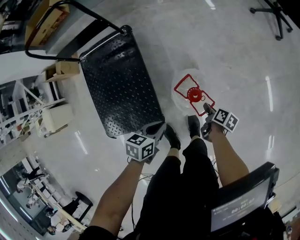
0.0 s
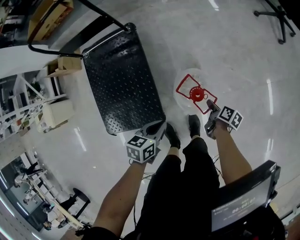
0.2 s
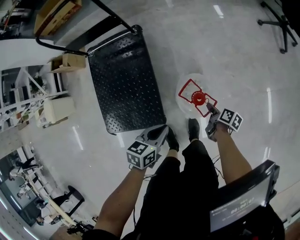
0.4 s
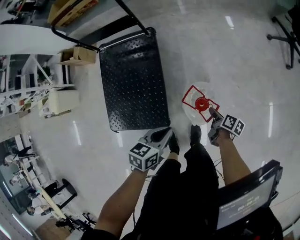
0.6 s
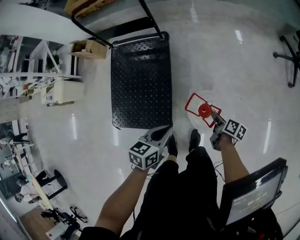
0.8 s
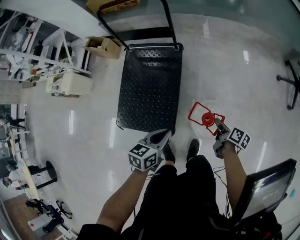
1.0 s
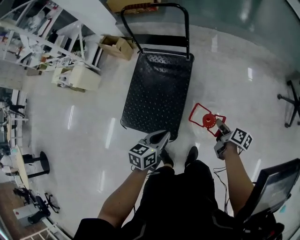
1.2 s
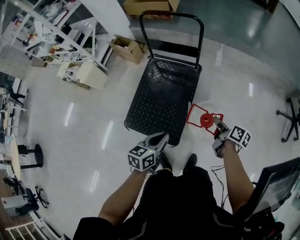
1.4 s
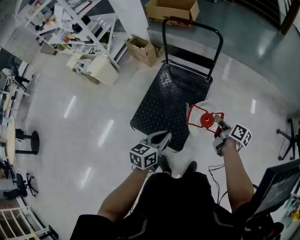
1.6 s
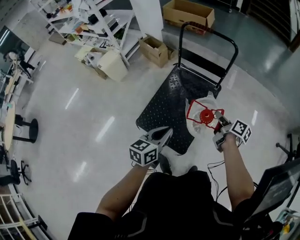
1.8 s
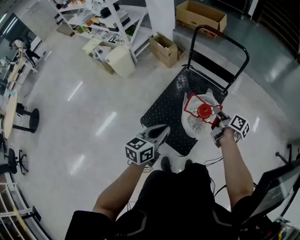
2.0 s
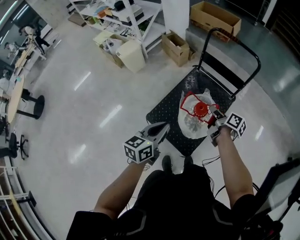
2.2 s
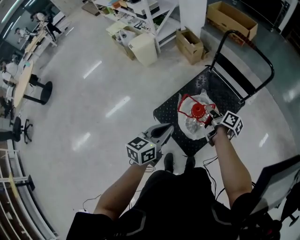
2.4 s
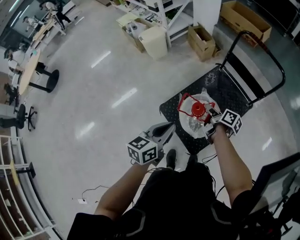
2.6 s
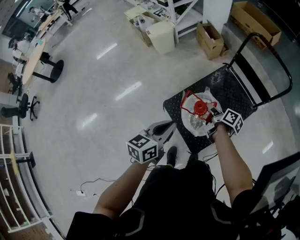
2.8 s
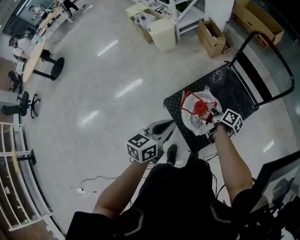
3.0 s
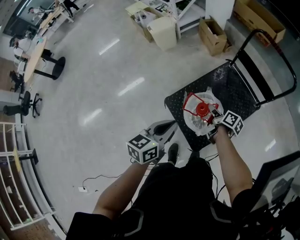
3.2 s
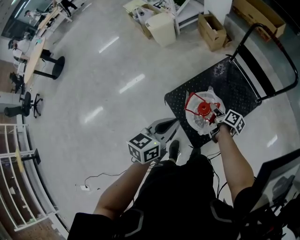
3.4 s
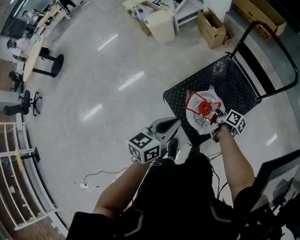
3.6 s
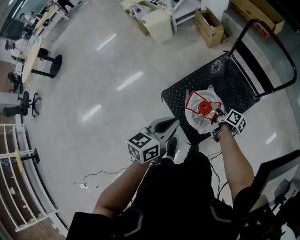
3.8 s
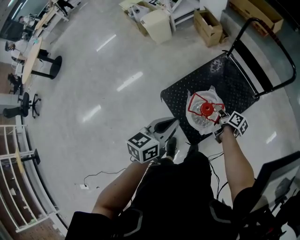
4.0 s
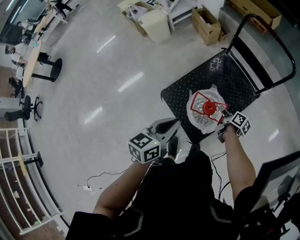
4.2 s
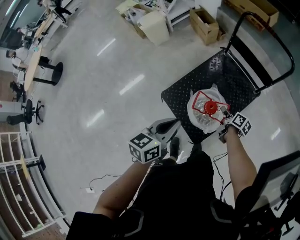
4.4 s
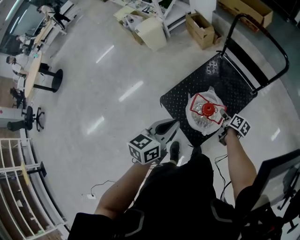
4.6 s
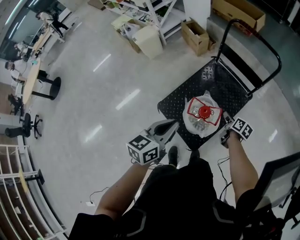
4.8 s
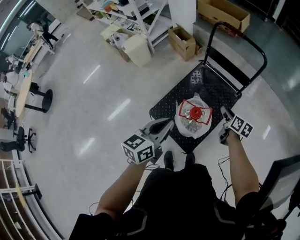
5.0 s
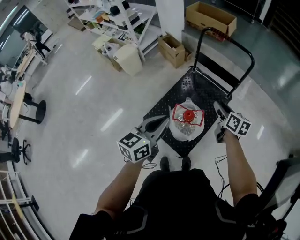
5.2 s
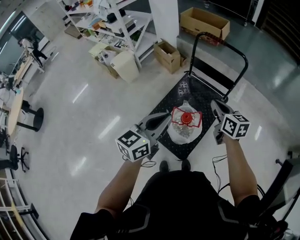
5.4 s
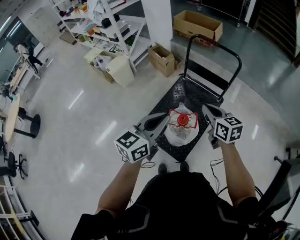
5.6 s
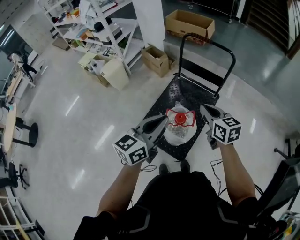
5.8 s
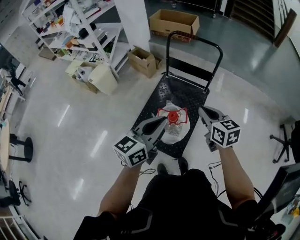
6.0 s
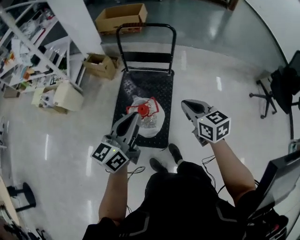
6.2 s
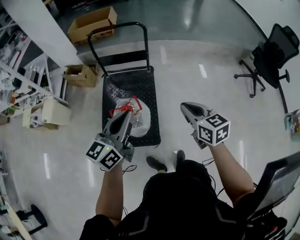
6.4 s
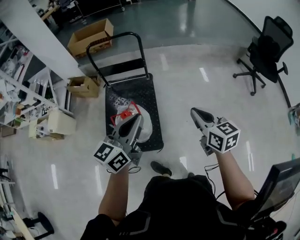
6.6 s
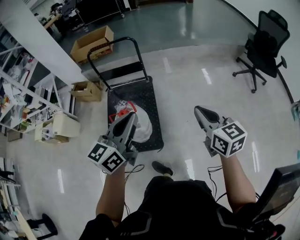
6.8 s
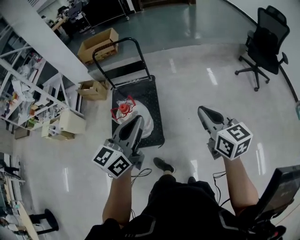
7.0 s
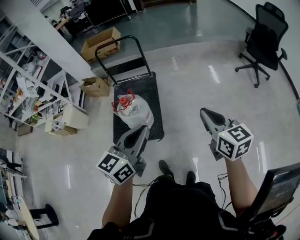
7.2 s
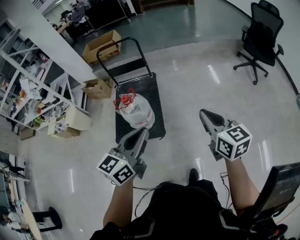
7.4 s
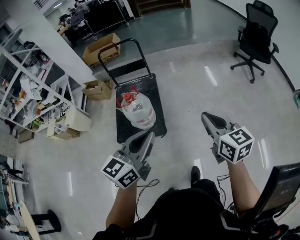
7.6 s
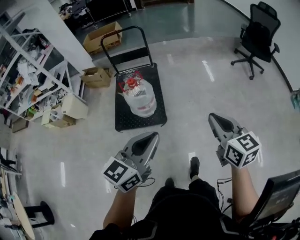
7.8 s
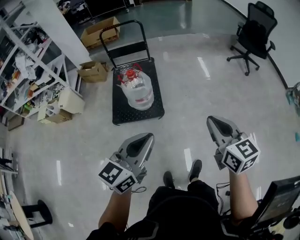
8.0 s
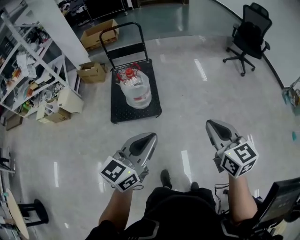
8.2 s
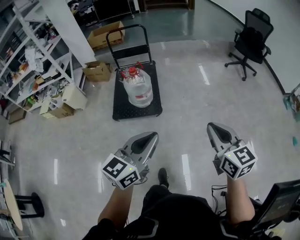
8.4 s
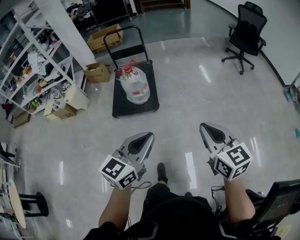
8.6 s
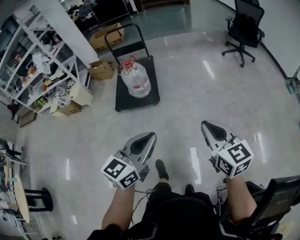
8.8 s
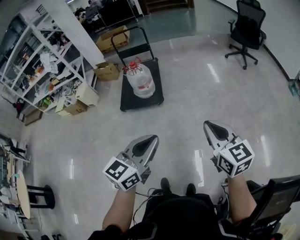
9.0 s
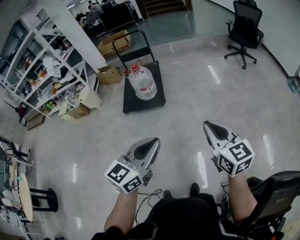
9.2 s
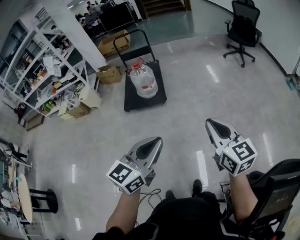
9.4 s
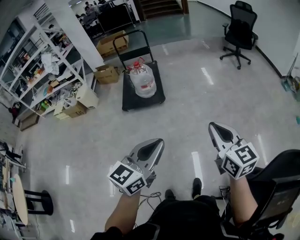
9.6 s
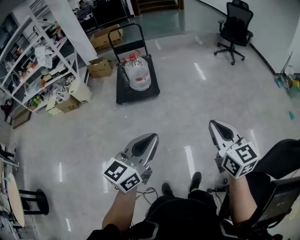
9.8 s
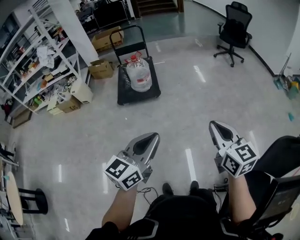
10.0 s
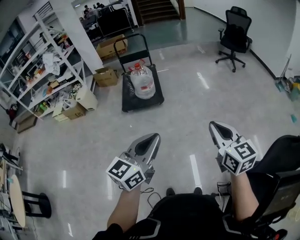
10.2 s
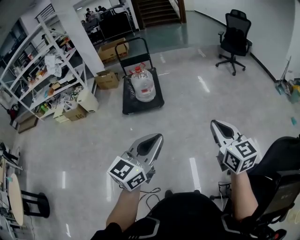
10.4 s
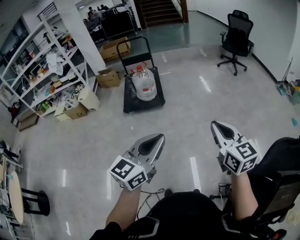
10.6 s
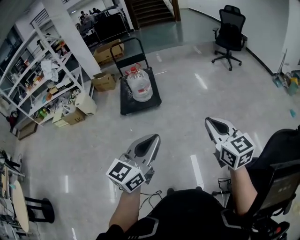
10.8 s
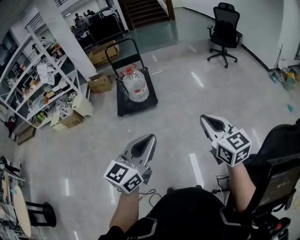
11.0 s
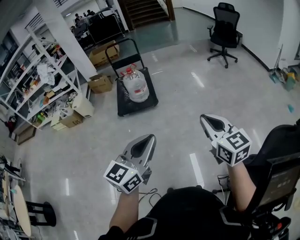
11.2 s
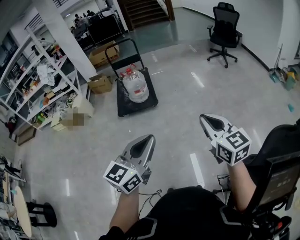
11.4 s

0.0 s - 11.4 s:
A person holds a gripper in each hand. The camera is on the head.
0.0 s - 1.4 s: Both grippers move upward, some 25 cm. The left gripper turns by some 40 degrees. Meanwhile the right gripper swivels roughly 40 degrees.
1.4 s - 2.8 s: The left gripper moves approximately 30 cm, and swivels approximately 30 degrees; the right gripper moves about 5 cm upward and comes back, and rotates approximately 30 degrees.
2.8 s - 4.2 s: The left gripper shifts roughly 5 cm to the right; the right gripper shifts roughly 15 cm to the right and downward.
4.2 s - 5.6 s: The right gripper travels upward by roughly 30 cm, twists approximately 50 degrees counterclockwise, seen from behind, and opens, then closes again, while the left gripper is displaced upward by about 15 cm, and changes its angle by approximately 30 degrees.
5.6 s - 7.2 s: The left gripper ends up roughly 40 cm from where it was, and turns by some 30 degrees, while the right gripper shifts by roughly 60 cm, and rotates approximately 40 degrees.
7.2 s - 8.6 s: Both grippers are carried backward, some 50 cm.
8.6 s - 10.0 s: Both grippers travel together backward, approximately 30 cm.
10.0 s - 11.4 s: The left gripper ends up some 5 cm from where it was.

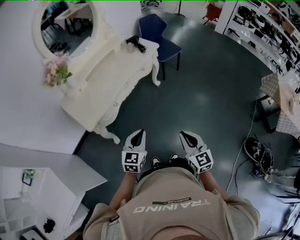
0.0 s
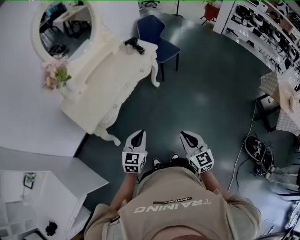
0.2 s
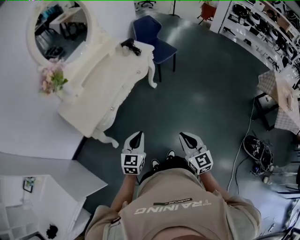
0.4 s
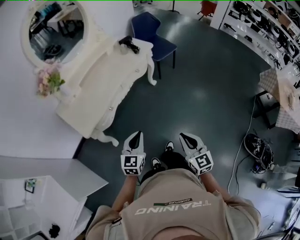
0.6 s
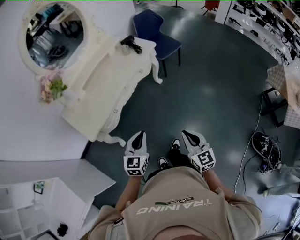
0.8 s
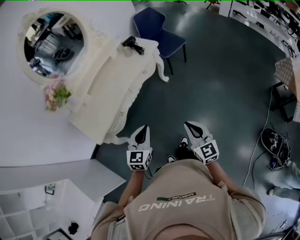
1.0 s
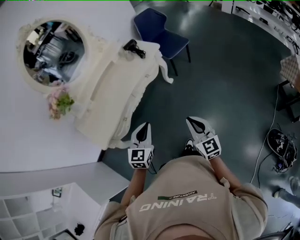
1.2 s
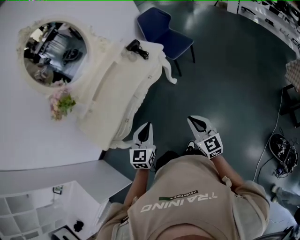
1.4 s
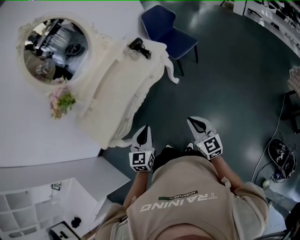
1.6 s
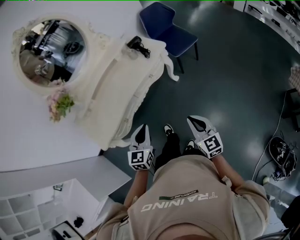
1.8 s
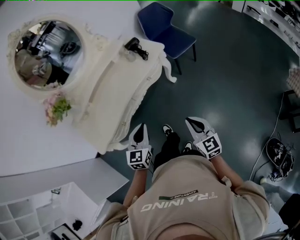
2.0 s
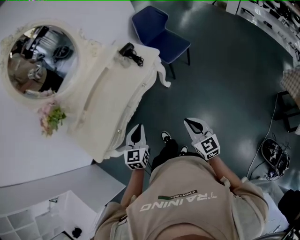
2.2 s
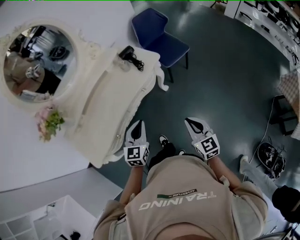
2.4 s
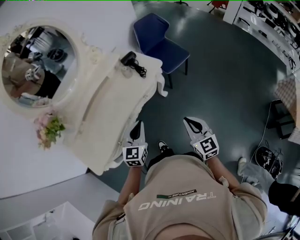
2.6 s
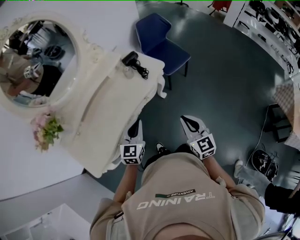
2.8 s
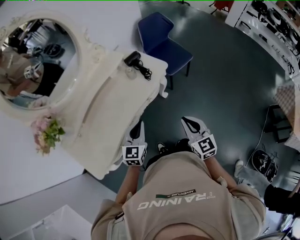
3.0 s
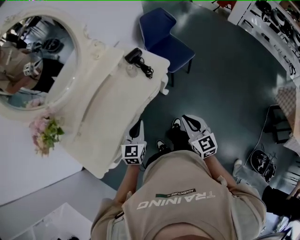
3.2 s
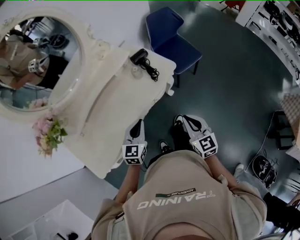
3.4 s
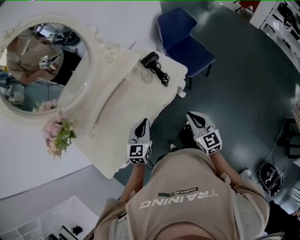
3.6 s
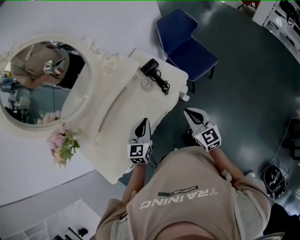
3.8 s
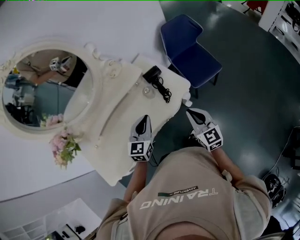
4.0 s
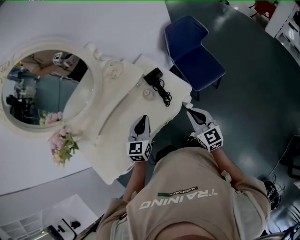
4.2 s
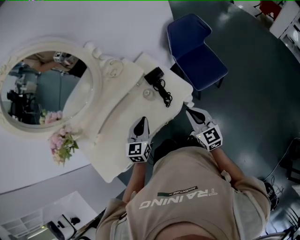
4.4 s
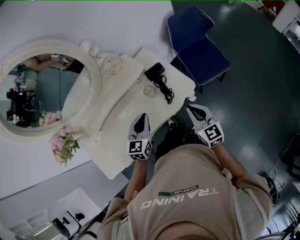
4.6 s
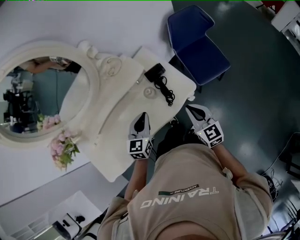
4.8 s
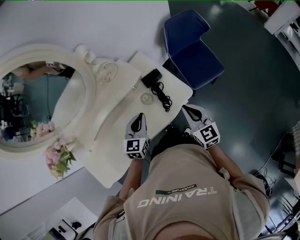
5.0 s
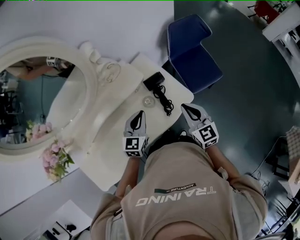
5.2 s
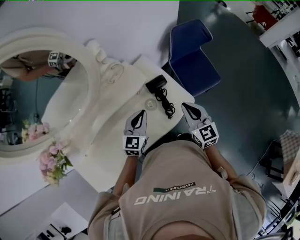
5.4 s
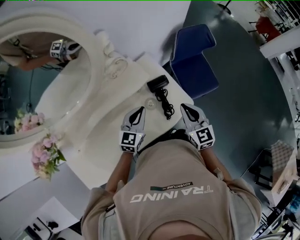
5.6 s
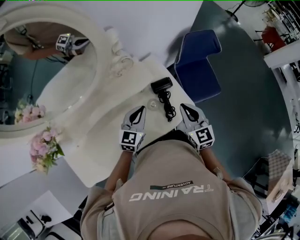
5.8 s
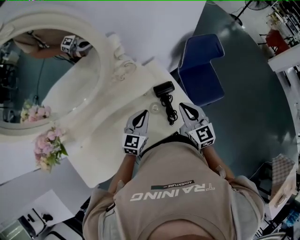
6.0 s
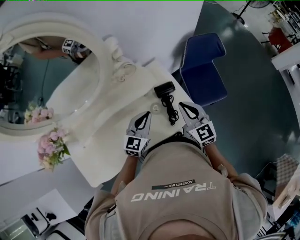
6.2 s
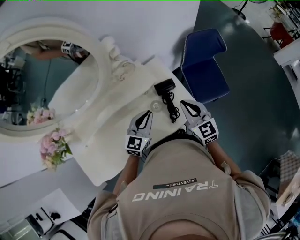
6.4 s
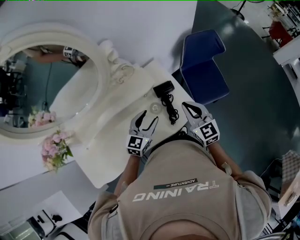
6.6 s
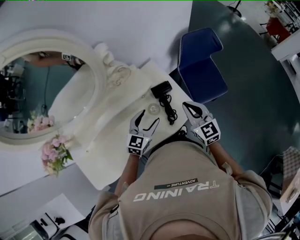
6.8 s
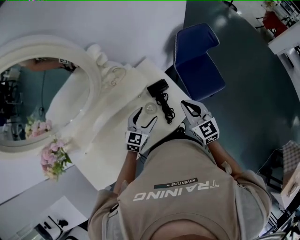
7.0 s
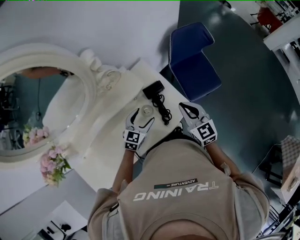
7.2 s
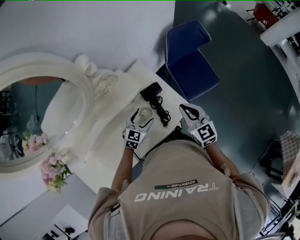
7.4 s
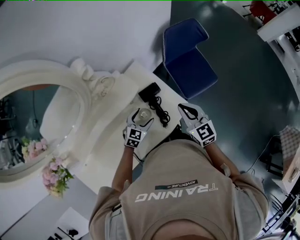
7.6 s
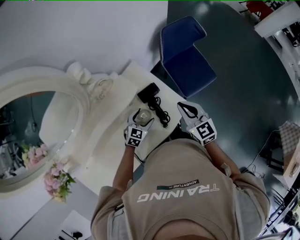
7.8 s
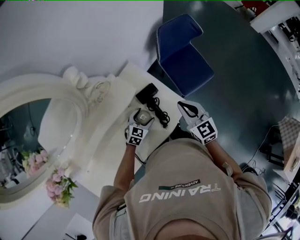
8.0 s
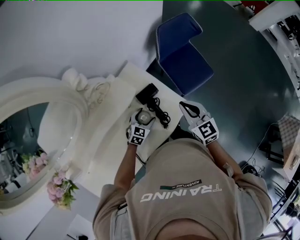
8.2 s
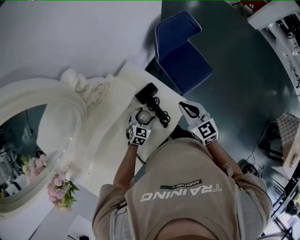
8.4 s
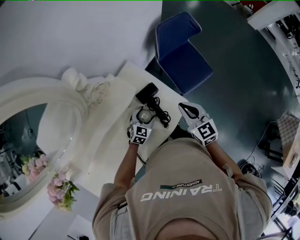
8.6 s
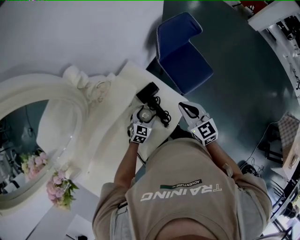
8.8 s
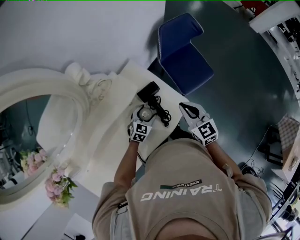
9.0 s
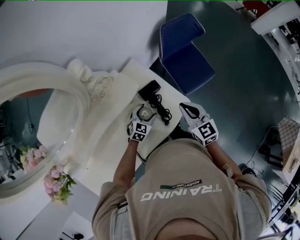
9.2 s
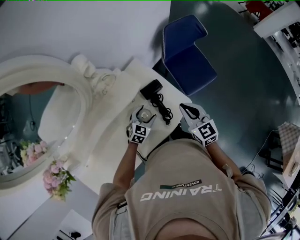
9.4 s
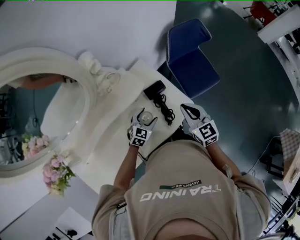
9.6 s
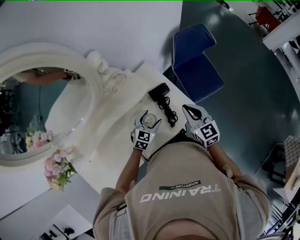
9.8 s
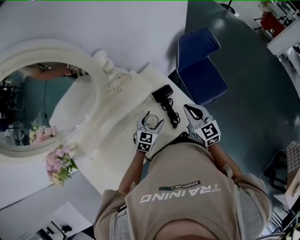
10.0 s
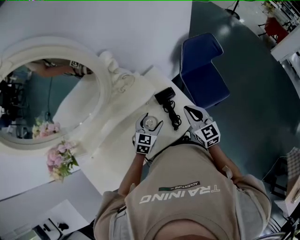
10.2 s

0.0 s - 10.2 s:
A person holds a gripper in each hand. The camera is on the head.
0.0 s - 1.4 s: Both grippers move forward, some 20 cm.
1.4 s - 3.0 s: The grippers both shift forward by roughly 25 cm.
3.0 s - 4.4 s: The two grippers go some 25 cm forward.
4.4 s - 5.8 s: The right gripper travels forward and to the left by some 15 cm. The left gripper goes roughly 15 cm forward.
5.8 s - 7.2 s: The left gripper heads downward, covering about 10 cm, and opens its fingers.
7.2 s - 8.8 s: The left gripper travels downward by roughly 10 cm.
8.8 s - 10.2 s: The left gripper shifts some 15 cm upward.

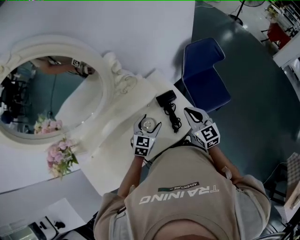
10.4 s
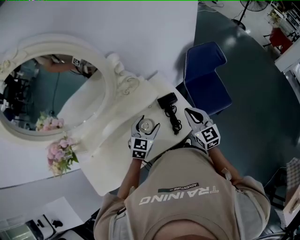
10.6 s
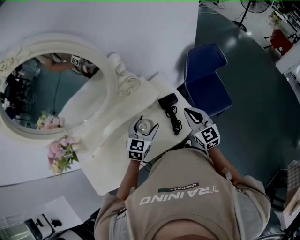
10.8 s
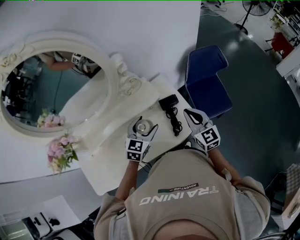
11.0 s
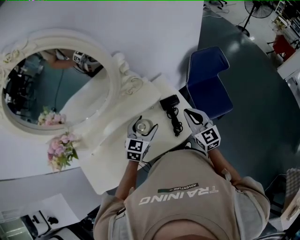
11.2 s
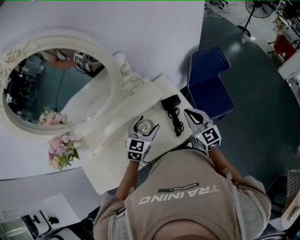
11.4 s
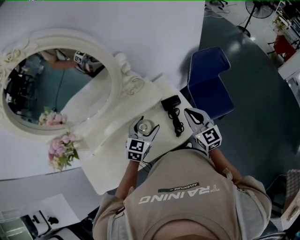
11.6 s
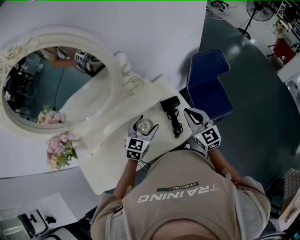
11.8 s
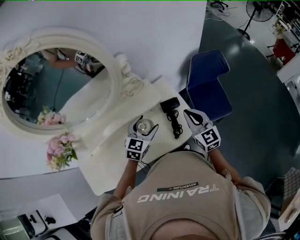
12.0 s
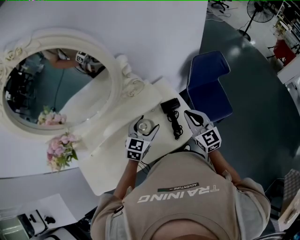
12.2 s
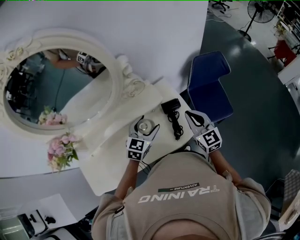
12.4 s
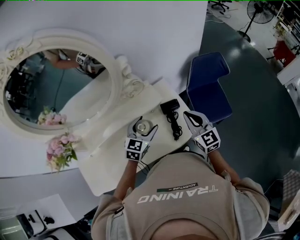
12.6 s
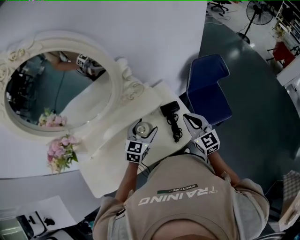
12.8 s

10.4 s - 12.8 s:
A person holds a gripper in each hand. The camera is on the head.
10.4 s - 11.6 s: The left gripper moves upward, some 5 cm.
11.6 s - 12.8 s: There are only small adjustments of the grippers.
